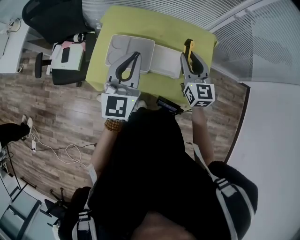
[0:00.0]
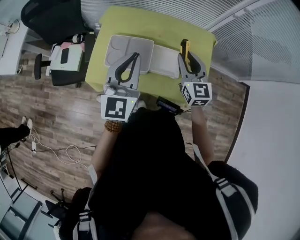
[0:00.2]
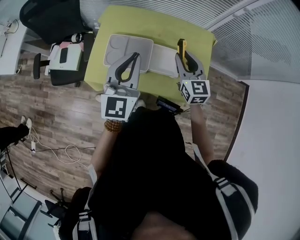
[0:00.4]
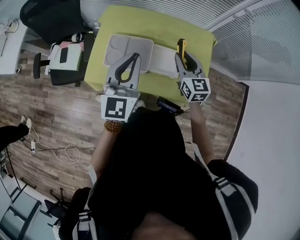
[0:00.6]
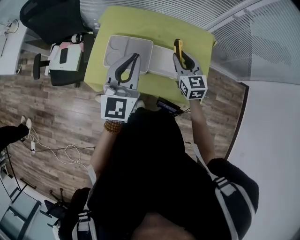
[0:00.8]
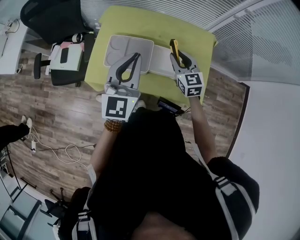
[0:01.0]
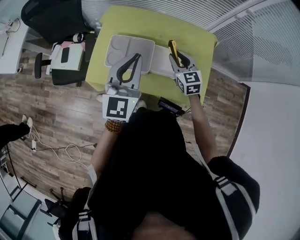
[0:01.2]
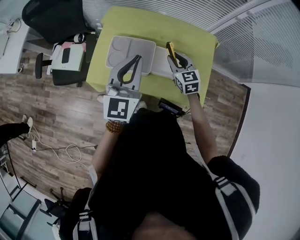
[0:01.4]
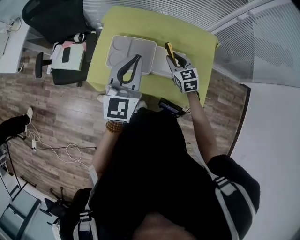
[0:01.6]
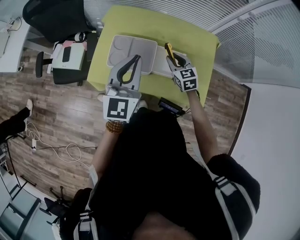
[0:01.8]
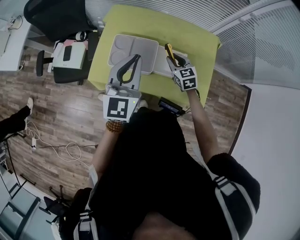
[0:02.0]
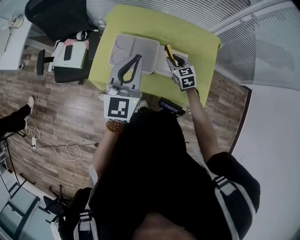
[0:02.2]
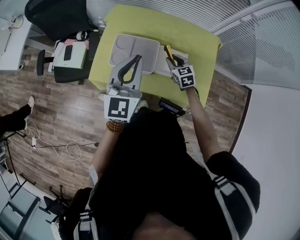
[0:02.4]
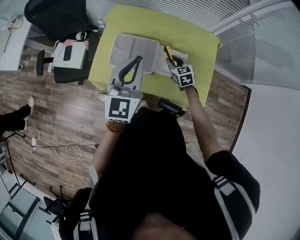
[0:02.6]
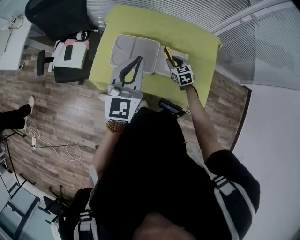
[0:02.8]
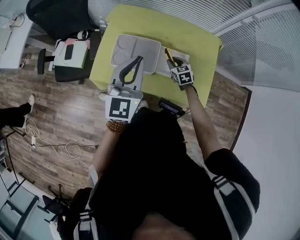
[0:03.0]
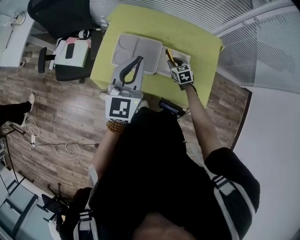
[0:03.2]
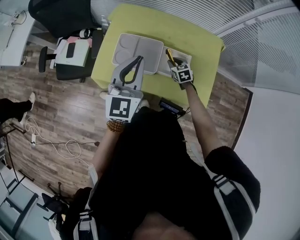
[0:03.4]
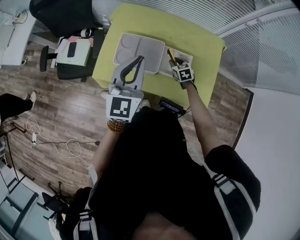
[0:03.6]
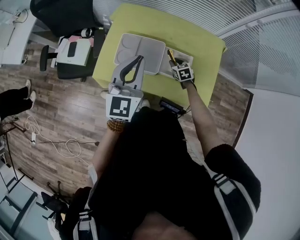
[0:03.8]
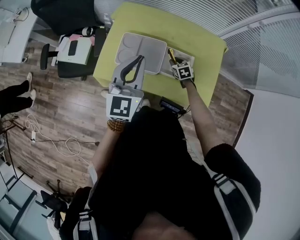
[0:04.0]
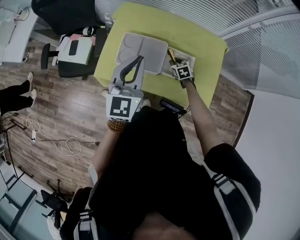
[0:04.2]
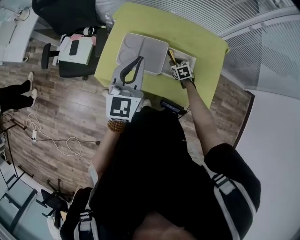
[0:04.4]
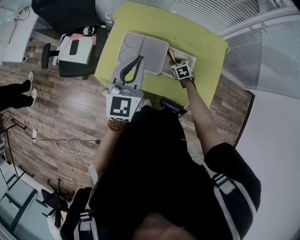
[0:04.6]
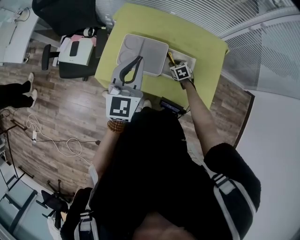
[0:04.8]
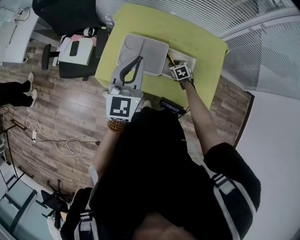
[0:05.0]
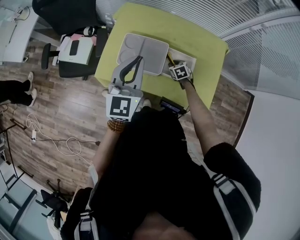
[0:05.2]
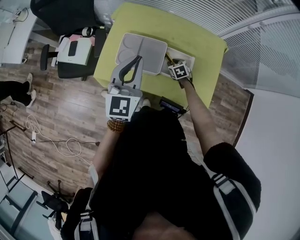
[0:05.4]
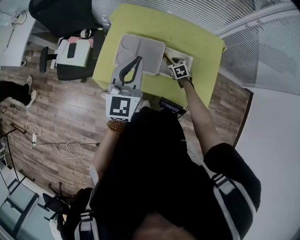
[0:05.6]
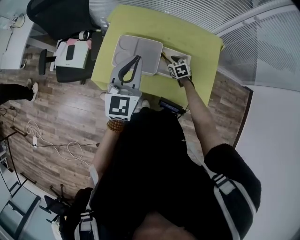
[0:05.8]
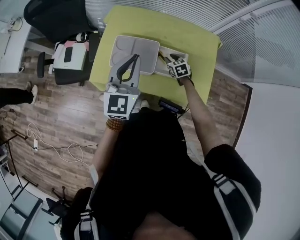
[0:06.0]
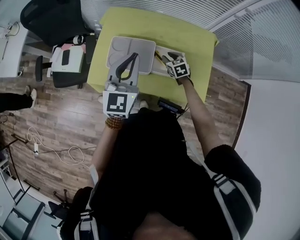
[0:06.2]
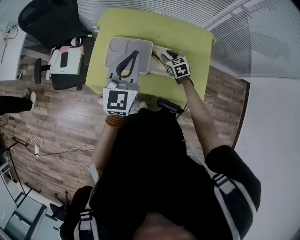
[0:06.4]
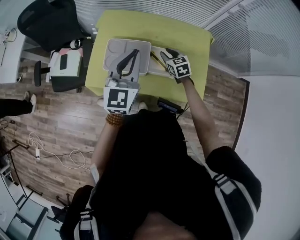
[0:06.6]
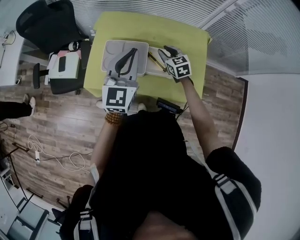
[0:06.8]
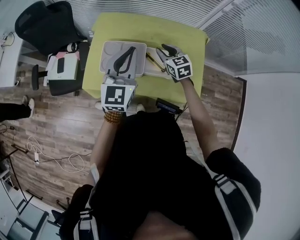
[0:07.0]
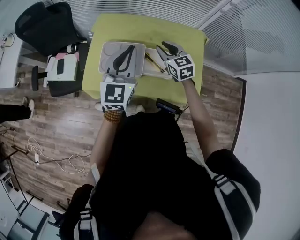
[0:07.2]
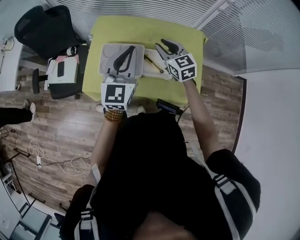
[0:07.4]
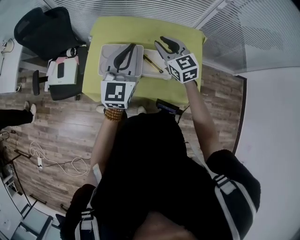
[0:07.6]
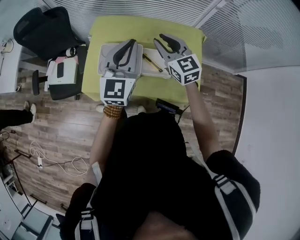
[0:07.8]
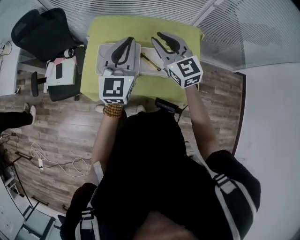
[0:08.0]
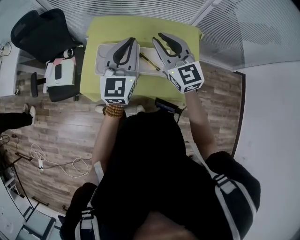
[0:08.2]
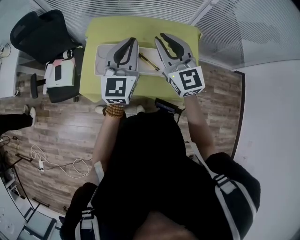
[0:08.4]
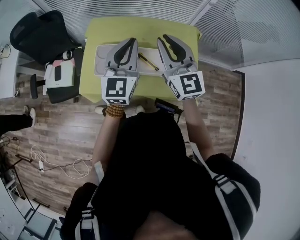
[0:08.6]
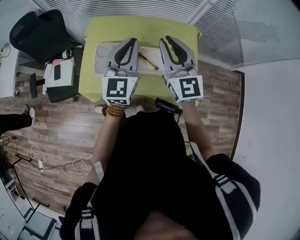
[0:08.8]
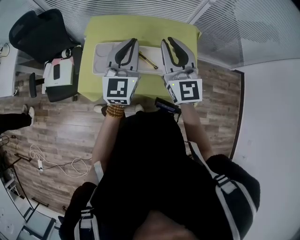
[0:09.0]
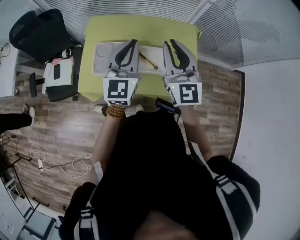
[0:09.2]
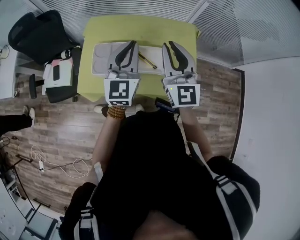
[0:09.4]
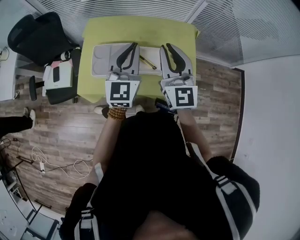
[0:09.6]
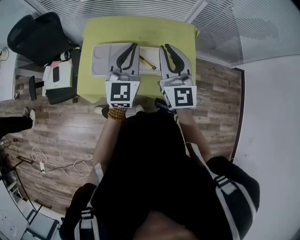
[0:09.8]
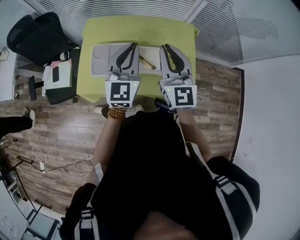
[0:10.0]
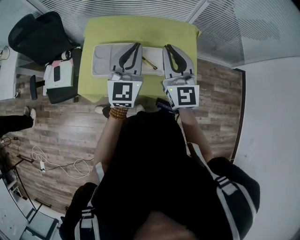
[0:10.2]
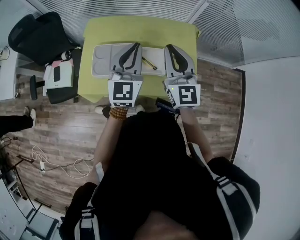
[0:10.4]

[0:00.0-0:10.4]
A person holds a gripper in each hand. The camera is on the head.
0:00.0 to 0:01.4: The right gripper travels downward by some 10 cm, and turns by some 20 degrees.
0:01.4 to 0:03.0: The right gripper goes approximately 15 cm downward.
0:03.0 to 0:04.4: The right gripper moves downward, roughly 5 cm.
0:04.4 to 0:06.0: The grippers stay close to where they were, moving slightly.
0:06.0 to 0:07.4: The left gripper ends up about 5 cm from where it was. Meanwhile the right gripper shifts some 25 cm upward, and rotates about 30 degrees.
0:07.4 to 0:09.0: The right gripper shifts approximately 20 cm upward and backward, and turns by about 30 degrees.
0:09.0 to 0:10.4: The grippers stay close to where they were, moving slightly.

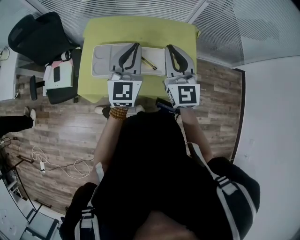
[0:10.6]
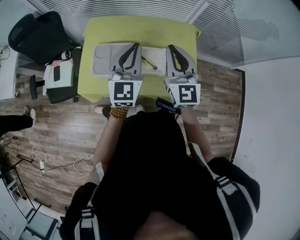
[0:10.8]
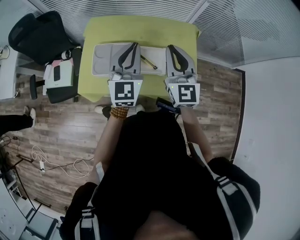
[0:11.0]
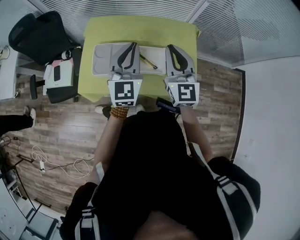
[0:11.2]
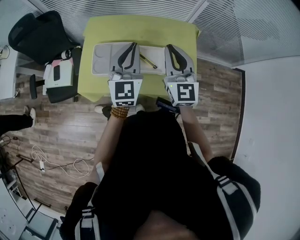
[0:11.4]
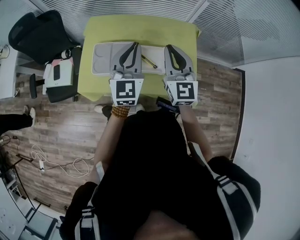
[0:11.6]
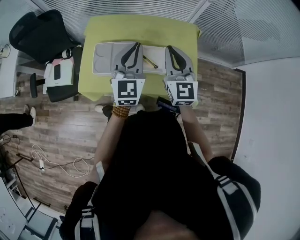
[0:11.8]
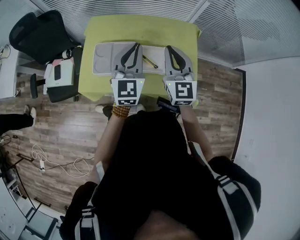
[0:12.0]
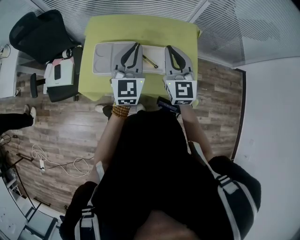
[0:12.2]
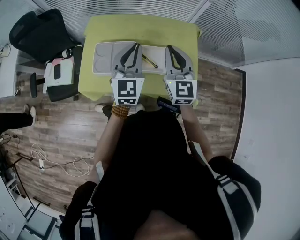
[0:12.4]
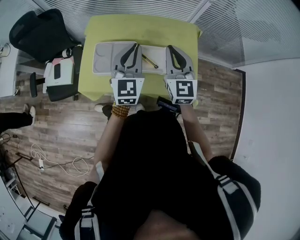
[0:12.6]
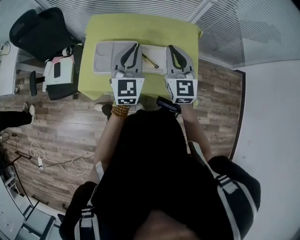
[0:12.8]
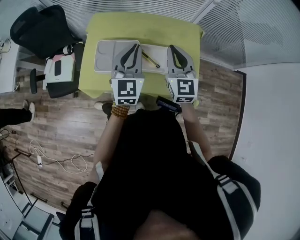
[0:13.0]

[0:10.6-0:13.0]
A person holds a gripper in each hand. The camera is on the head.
0:10.6 to 0:13.0: The grippers move only a little.

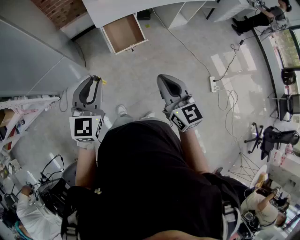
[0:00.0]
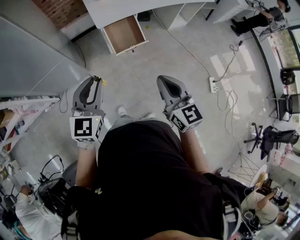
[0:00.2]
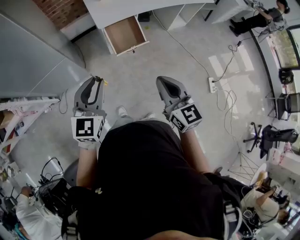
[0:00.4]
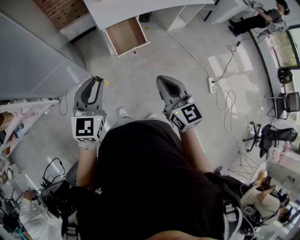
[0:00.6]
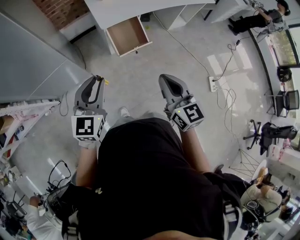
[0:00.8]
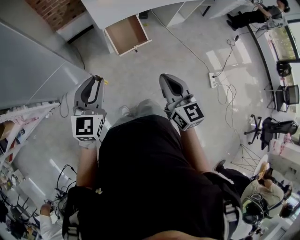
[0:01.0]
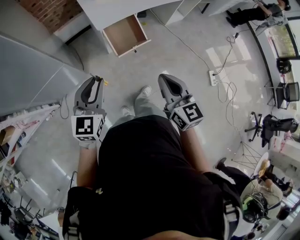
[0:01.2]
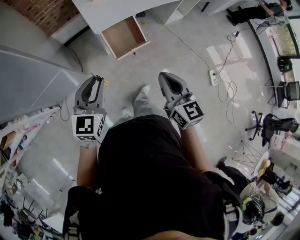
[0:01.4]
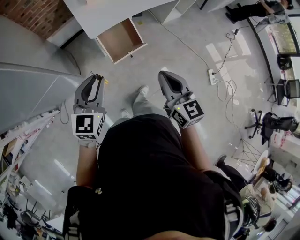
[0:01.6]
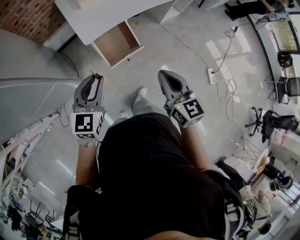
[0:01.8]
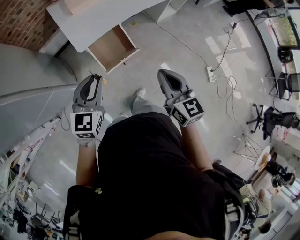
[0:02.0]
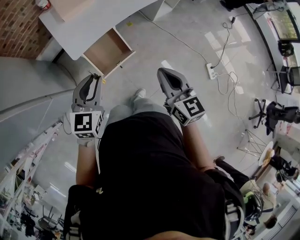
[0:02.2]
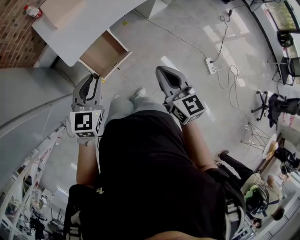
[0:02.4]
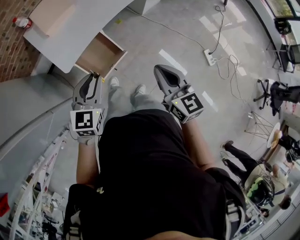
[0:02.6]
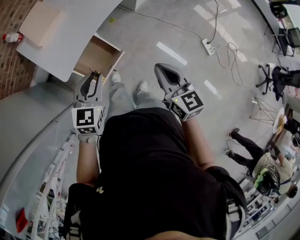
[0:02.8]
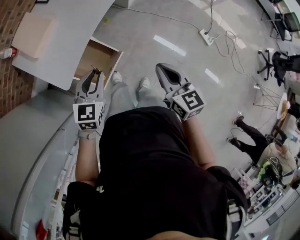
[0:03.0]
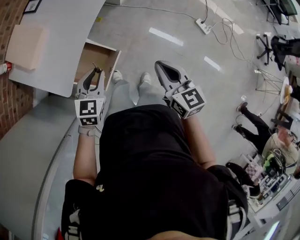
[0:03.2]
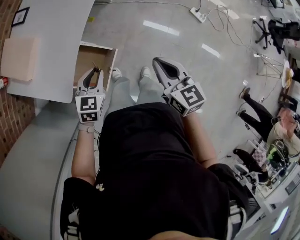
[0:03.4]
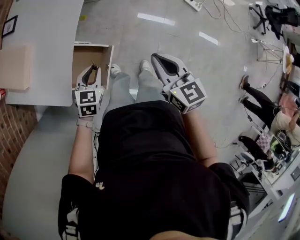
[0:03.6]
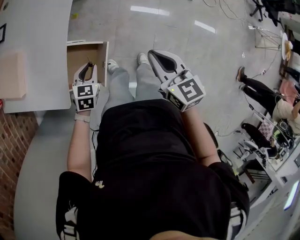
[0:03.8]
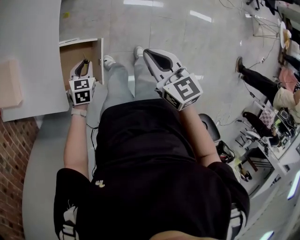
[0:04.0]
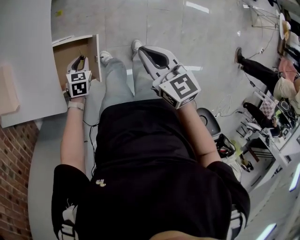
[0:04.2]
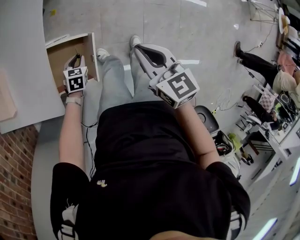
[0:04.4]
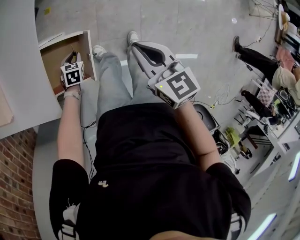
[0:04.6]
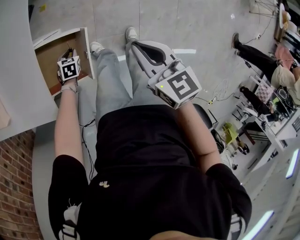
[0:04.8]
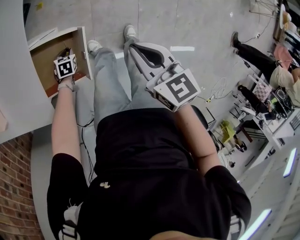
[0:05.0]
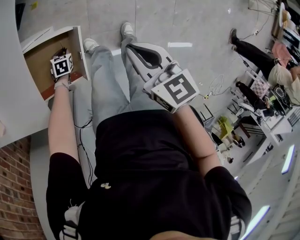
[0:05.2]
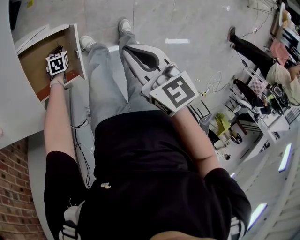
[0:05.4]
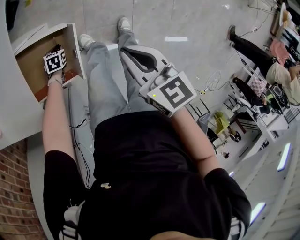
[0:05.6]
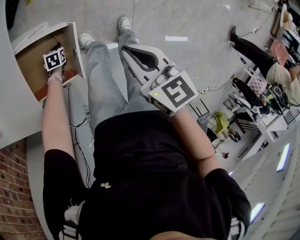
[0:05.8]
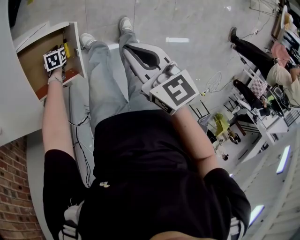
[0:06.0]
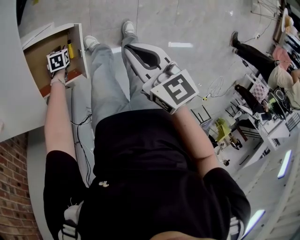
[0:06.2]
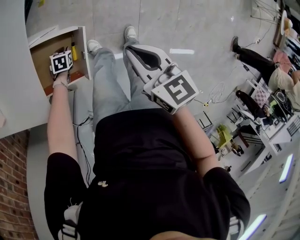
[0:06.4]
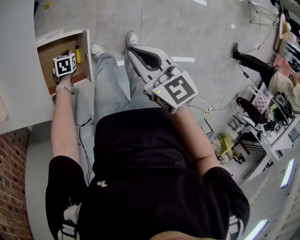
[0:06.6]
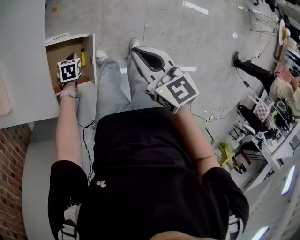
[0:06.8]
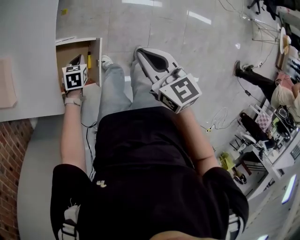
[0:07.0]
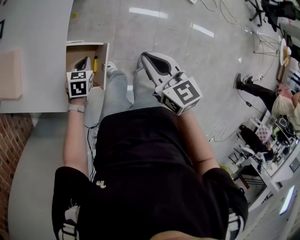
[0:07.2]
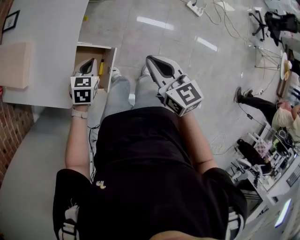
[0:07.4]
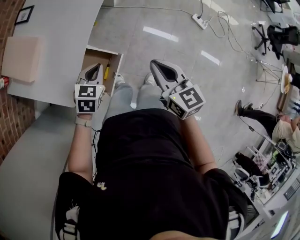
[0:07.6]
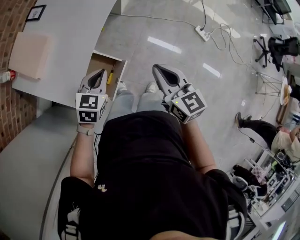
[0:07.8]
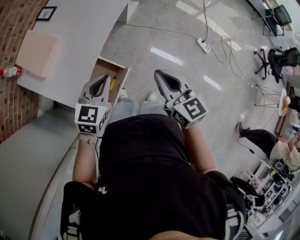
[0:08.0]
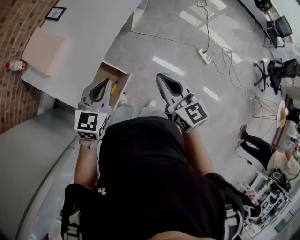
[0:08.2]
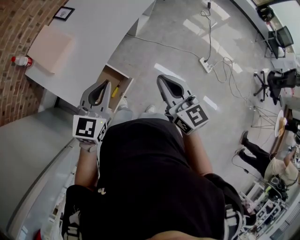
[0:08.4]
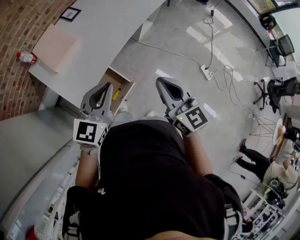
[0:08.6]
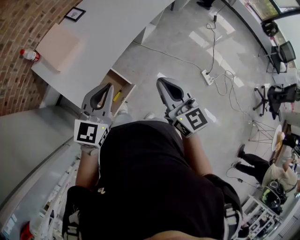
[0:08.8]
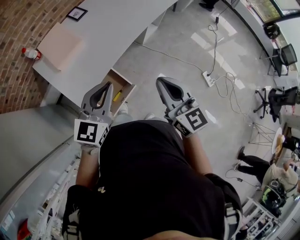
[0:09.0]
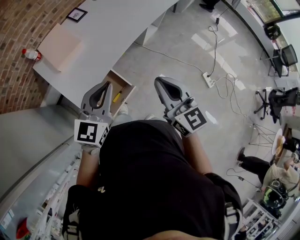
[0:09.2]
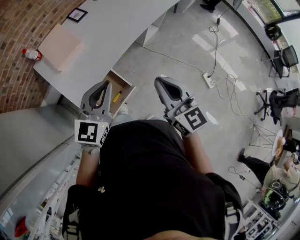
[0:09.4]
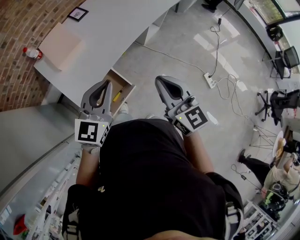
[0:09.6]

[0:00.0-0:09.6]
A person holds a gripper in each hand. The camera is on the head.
0:00.0 to 0:01.6: Both grippers move forward, roughly 15 cm.
0:01.6 to 0:03.2: The left gripper moves about 35 cm, and turns by some 40 degrees. Meanwhile the right gripper changes place by about 25 cm, and swivels approximately 30 degrees.
0:03.2 to 0:04.8: The left gripper is displaced downward by about 40 cm, and tilts its fingers about 30 degrees downward. The right gripper travels downward by about 10 cm, and swivels roughly 20 degrees.
0:04.8 to 0:06.4: The left gripper travels downward and back again, approximately 10 cm each way.
0:06.4 to 0:08.0: The right gripper travels upward by some 20 cm, and changes its angle by approximately 30 degrees, while the left gripper is displaced upward by about 50 cm, and tilts its fingers some 50 degrees upward.
0:08.0 to 0:09.6: The grippers both shift upward by approximately 10 cm. The left gripper changes its angle by roughly 30 degrees.
